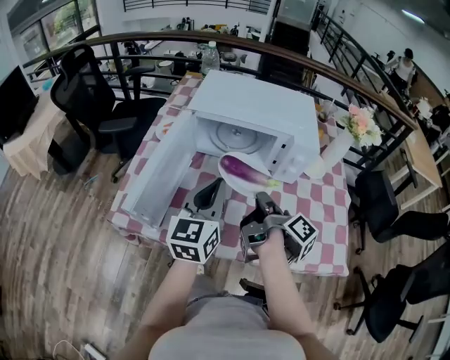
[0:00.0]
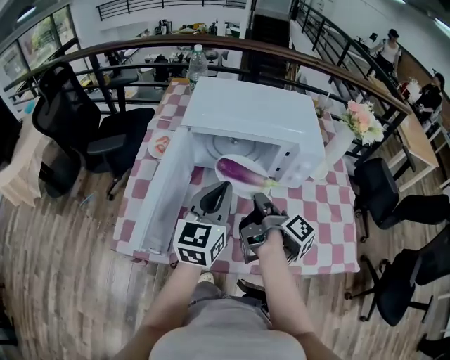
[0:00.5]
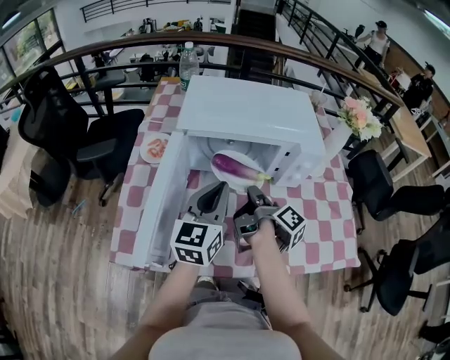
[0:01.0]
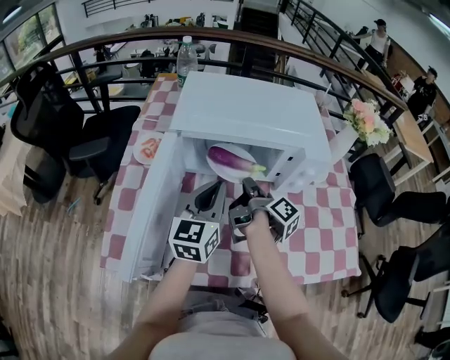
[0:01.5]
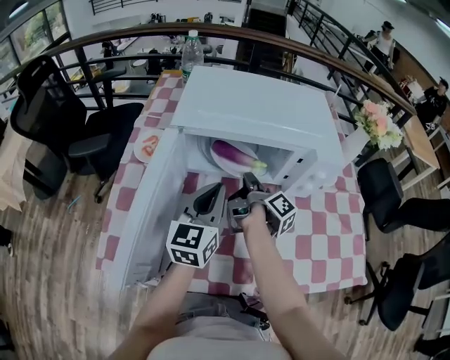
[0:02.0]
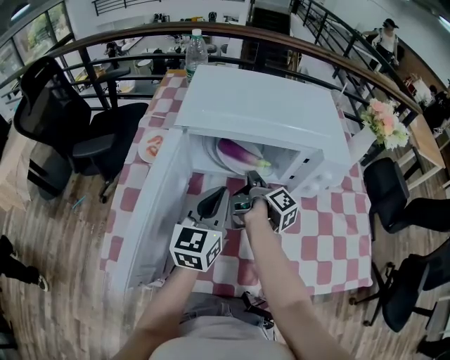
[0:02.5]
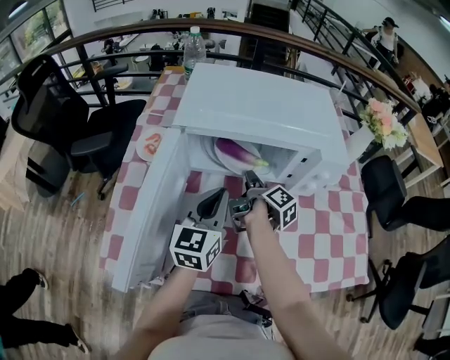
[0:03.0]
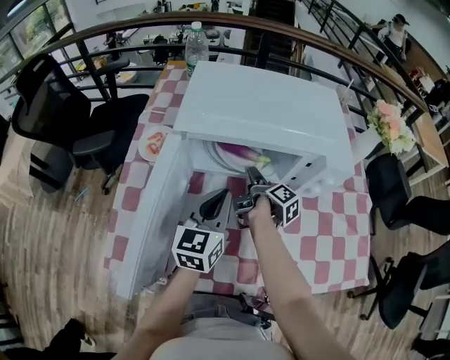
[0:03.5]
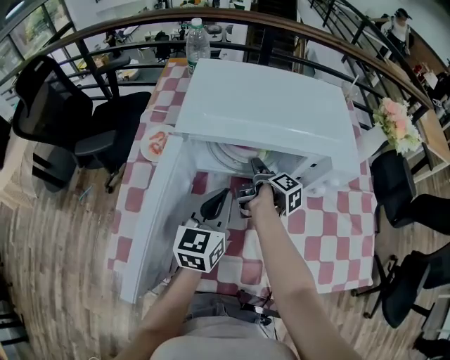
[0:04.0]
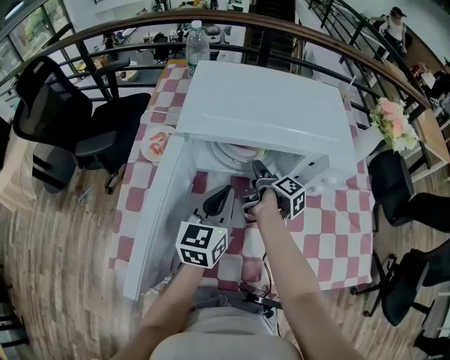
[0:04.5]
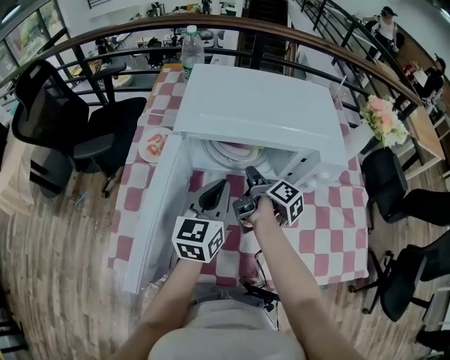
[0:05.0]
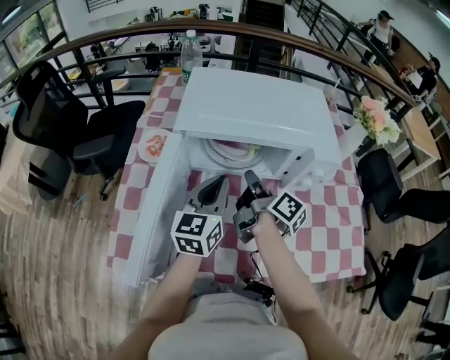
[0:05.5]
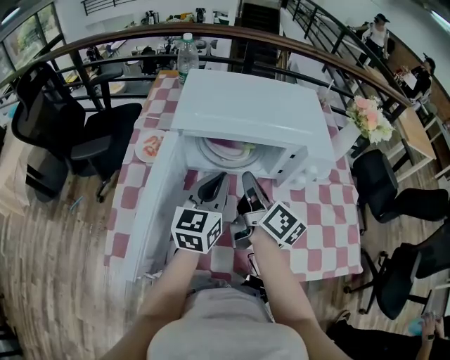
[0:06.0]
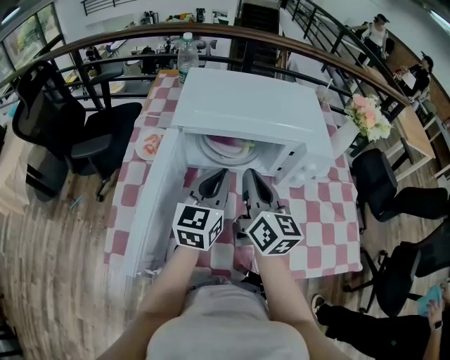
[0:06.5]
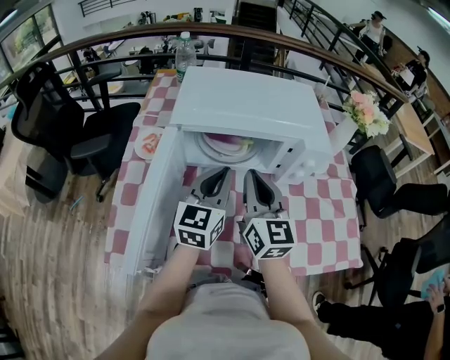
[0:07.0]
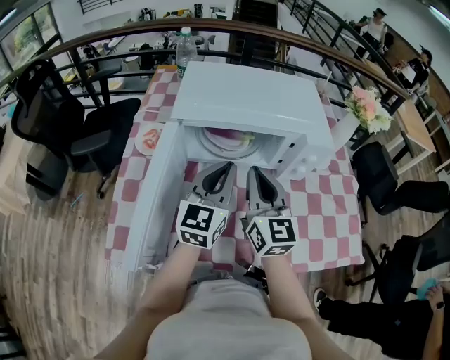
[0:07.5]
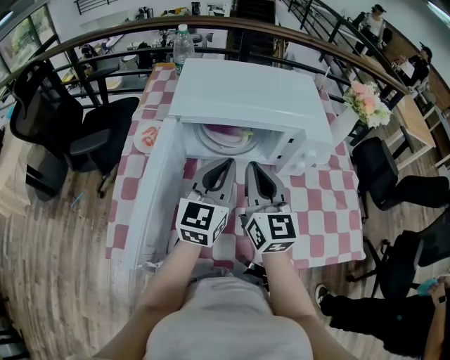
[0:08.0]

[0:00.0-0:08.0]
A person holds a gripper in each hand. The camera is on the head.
0:00.0 to 0:02.0: The left gripper changes place by some 15 cm.
0:04.0 to 0:06.0: The left gripper travels upward by some 5 cm.

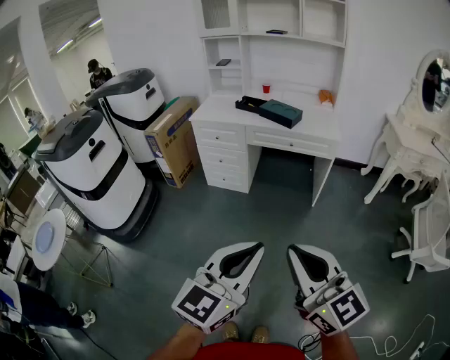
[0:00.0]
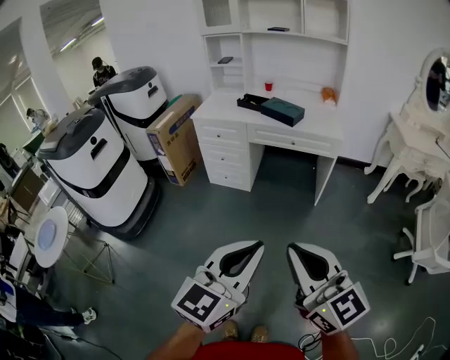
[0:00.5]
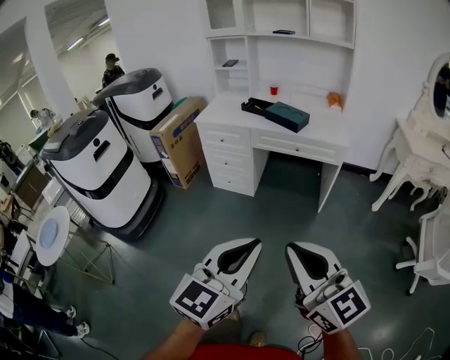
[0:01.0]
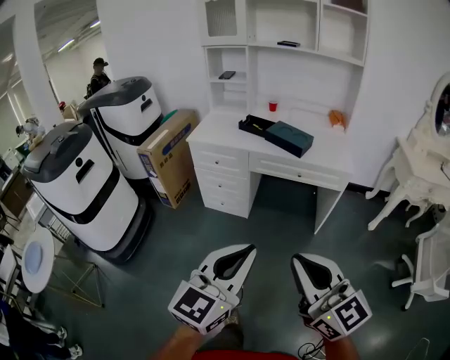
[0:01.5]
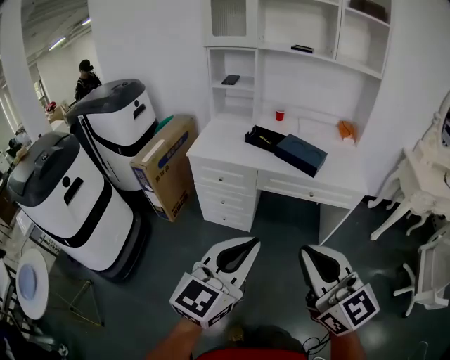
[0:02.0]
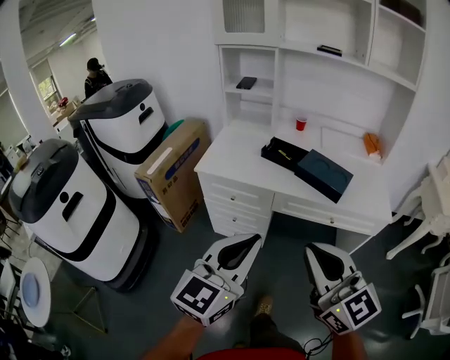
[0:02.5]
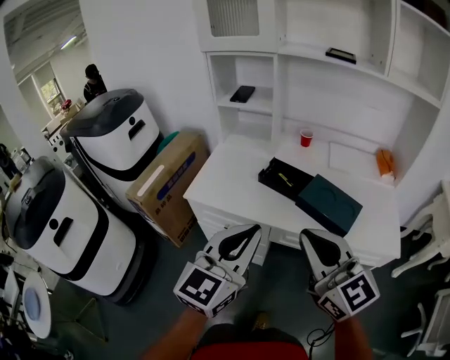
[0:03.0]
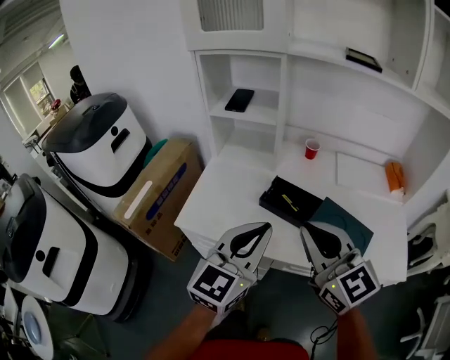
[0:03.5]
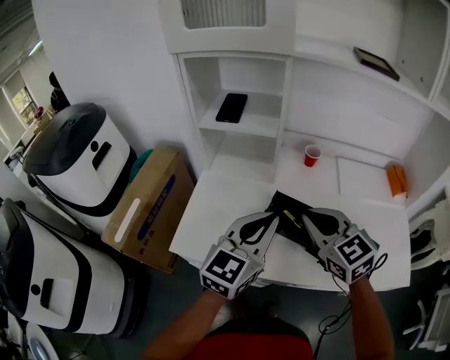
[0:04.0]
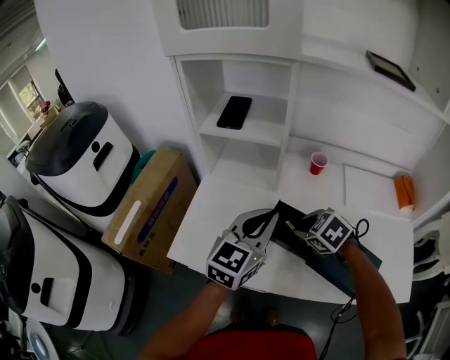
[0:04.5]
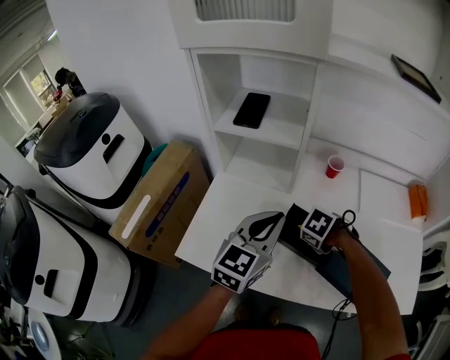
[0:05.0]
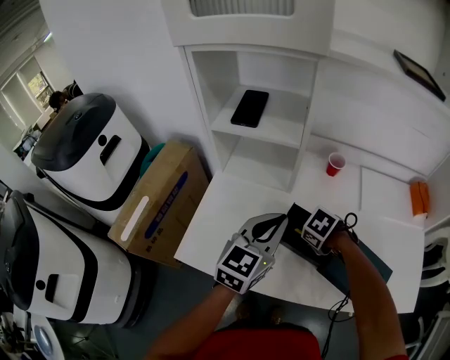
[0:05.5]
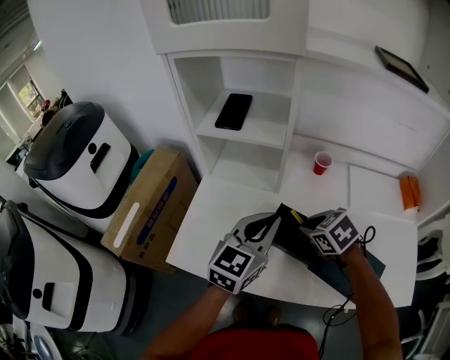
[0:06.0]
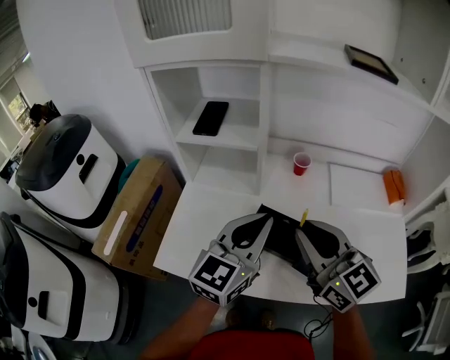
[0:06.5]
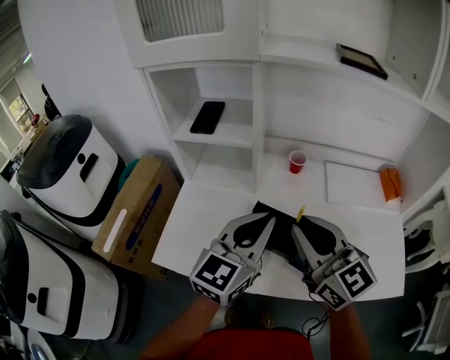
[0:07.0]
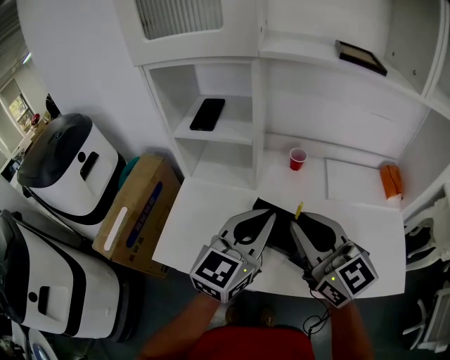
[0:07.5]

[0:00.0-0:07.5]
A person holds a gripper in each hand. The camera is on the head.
0:00.0 to 0:02.0: The two grippers go some 35 cm forward.
0:02.0 to 0:04.0: The pair of grippers is taken forward, approximately 60 cm. The right gripper swivels approximately 20 degrees.
0:04.0 to 0:05.5: The left gripper ends up roughly 10 cm from where it was. Meanwhile the right gripper shifts approximately 25 cm downward, and angles its fingers downward, by approximately 60 degrees.
0:05.5 to 0:07.5: The right gripper goes about 30 cm upward, and angles its fingers upward, by approximately 80 degrees; the left gripper changes place by some 10 cm.

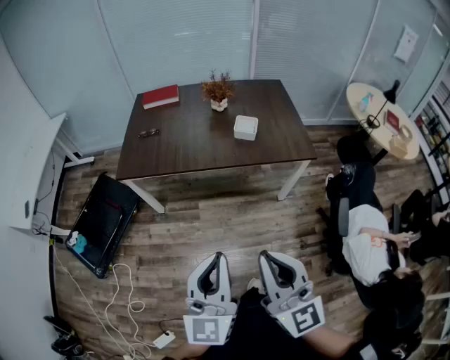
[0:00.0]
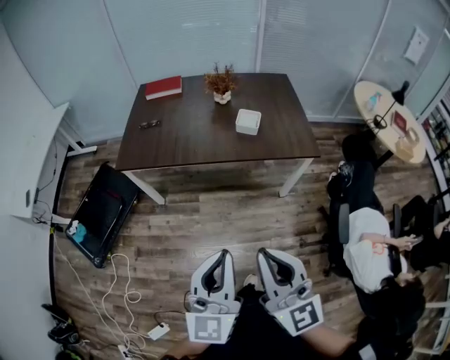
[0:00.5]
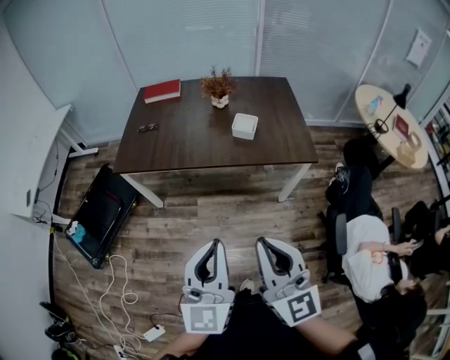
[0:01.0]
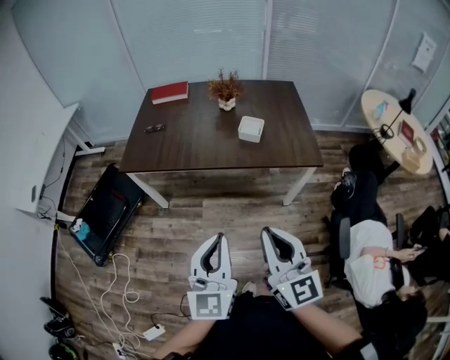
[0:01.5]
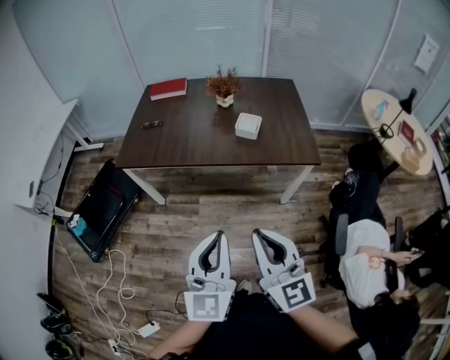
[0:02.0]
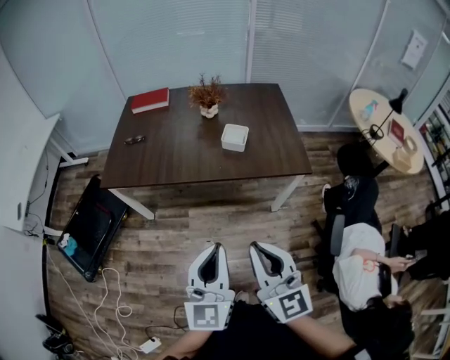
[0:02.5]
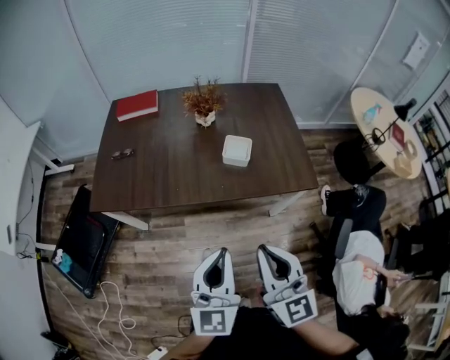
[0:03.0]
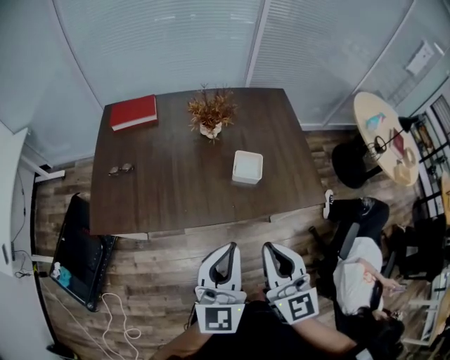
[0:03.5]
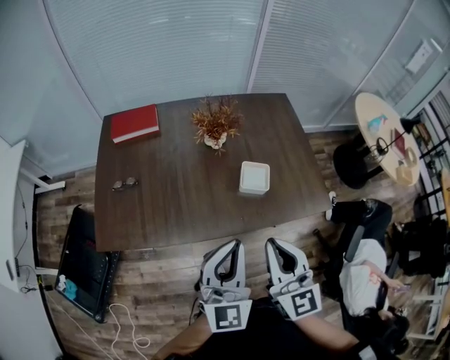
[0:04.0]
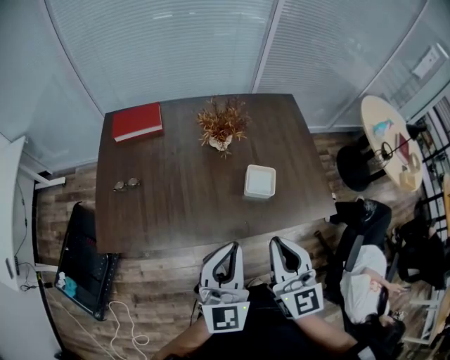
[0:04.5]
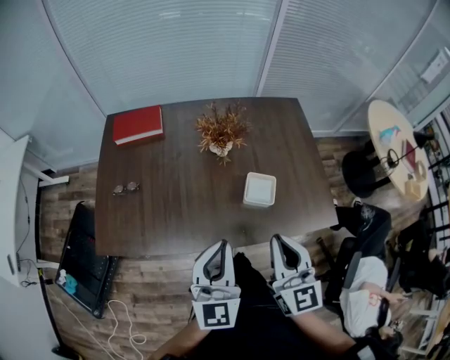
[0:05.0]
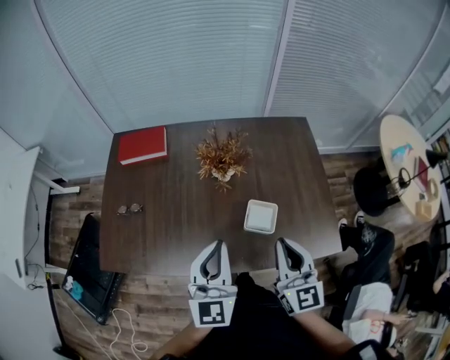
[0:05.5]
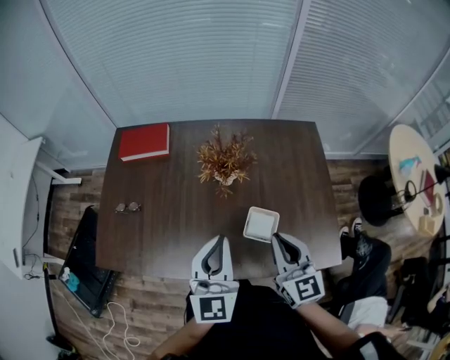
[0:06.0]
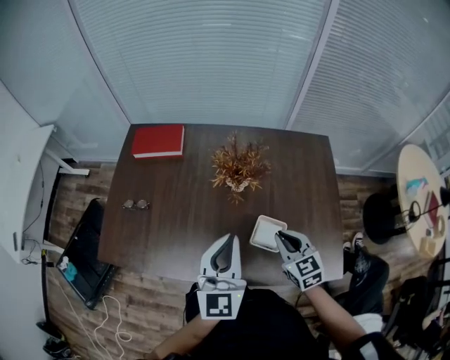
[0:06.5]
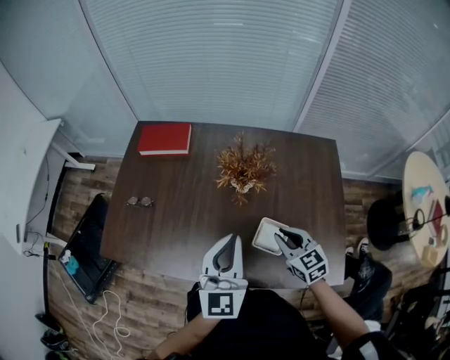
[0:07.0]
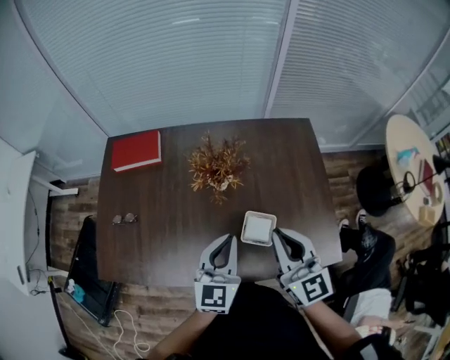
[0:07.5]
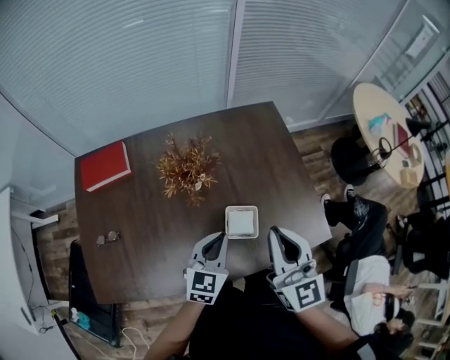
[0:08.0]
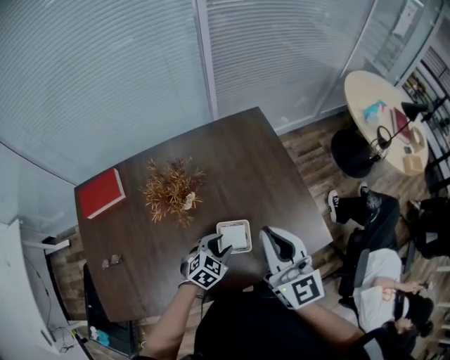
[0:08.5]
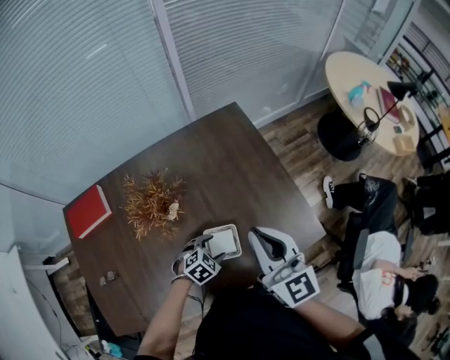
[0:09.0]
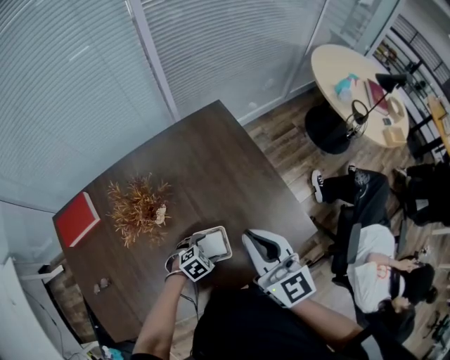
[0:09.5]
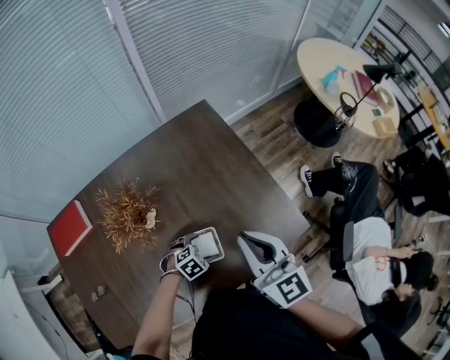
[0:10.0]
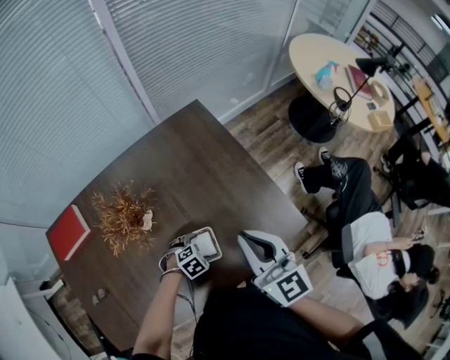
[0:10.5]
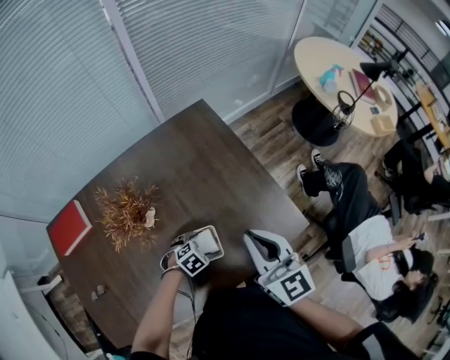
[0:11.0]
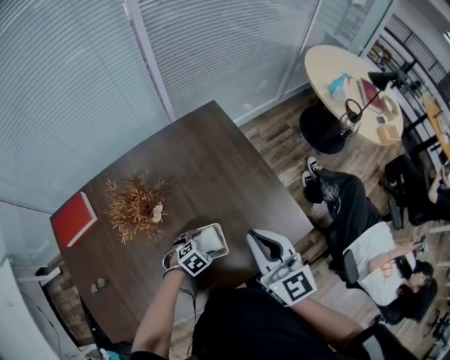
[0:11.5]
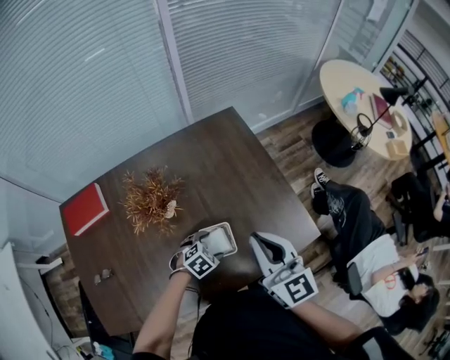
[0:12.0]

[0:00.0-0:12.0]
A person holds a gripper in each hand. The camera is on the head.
0:00.0 to 0:02.0: The right gripper goes about 10 cm to the right, forward and downward; the left gripper heads to the right, covering some 10 cm.
0:02.0 to 0:04.0: Both grippers travel together forward, roughly 35 cm.
0:04.0 to 0:06.0: The left gripper goes some 20 cm forward; the right gripper is displaced forward and to the right by approximately 25 cm.
0:06.0 to 0:08.0: The right gripper is displaced upward by approximately 10 cm, and rotates approximately 20 degrees, while the left gripper goes roughly 10 cm downward, and swivels about 40 degrees.
0:08.0 to 0:10.0: The right gripper shifts by about 15 cm, while the left gripper goes about 25 cm downward, points its fingers about 50 degrees further downward, and opens up.
0:10.0 to 0:12.0: The grippers stay close to where they were, moving slightly.
